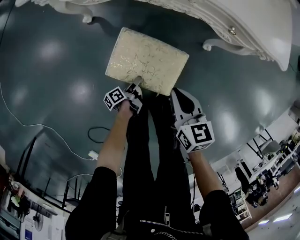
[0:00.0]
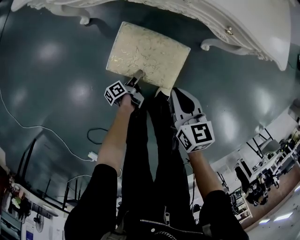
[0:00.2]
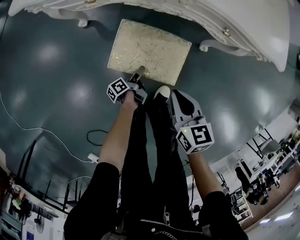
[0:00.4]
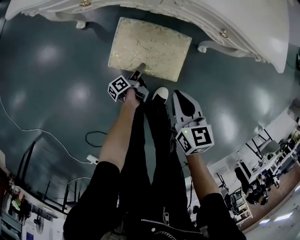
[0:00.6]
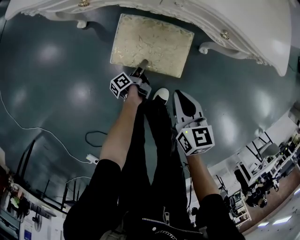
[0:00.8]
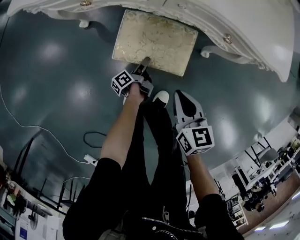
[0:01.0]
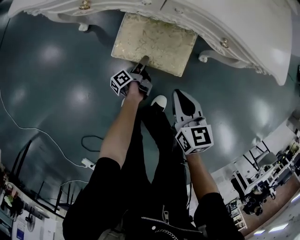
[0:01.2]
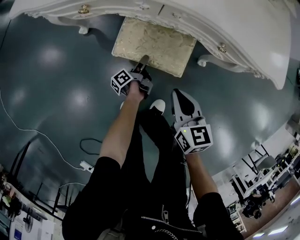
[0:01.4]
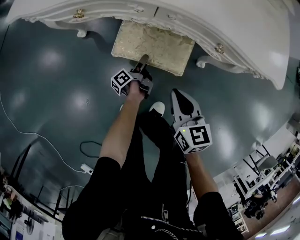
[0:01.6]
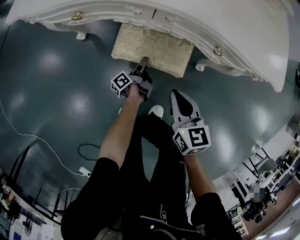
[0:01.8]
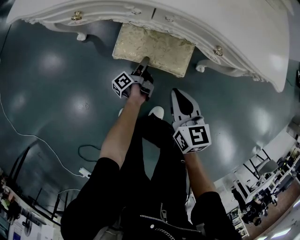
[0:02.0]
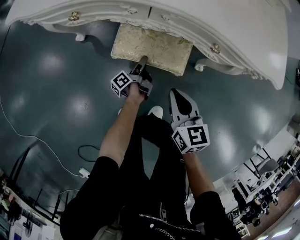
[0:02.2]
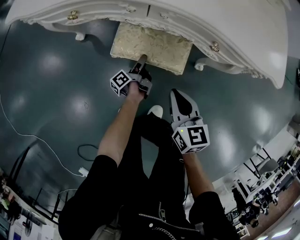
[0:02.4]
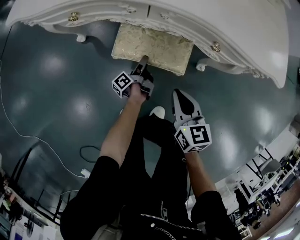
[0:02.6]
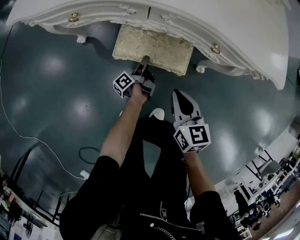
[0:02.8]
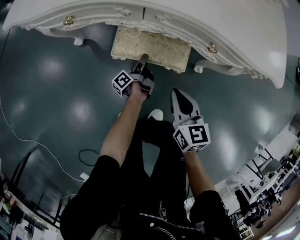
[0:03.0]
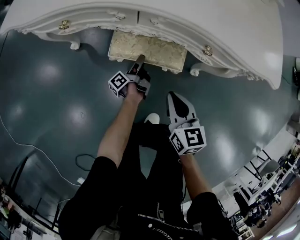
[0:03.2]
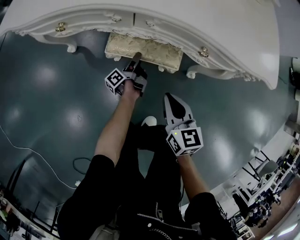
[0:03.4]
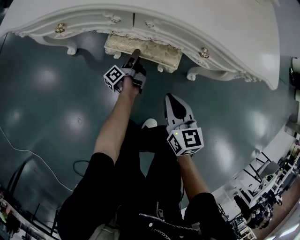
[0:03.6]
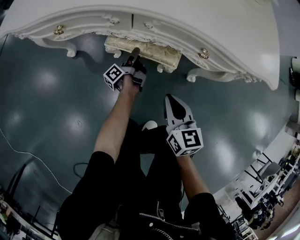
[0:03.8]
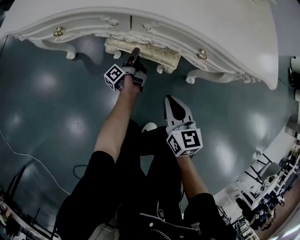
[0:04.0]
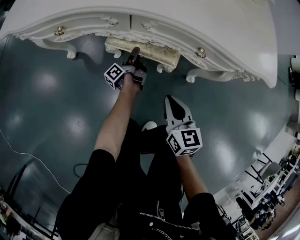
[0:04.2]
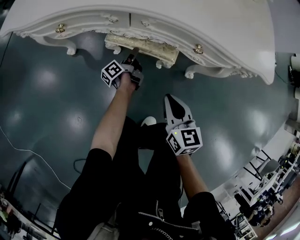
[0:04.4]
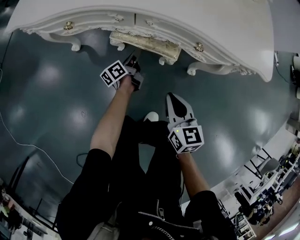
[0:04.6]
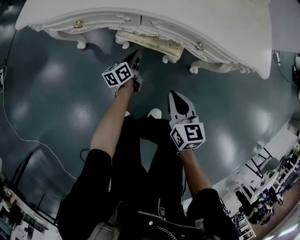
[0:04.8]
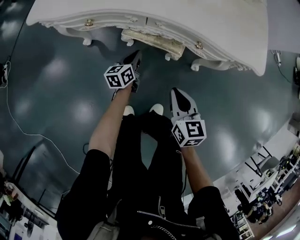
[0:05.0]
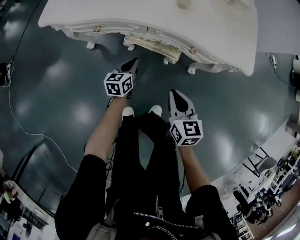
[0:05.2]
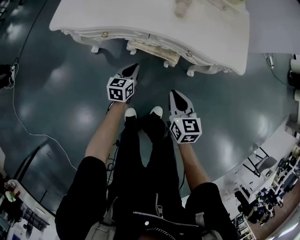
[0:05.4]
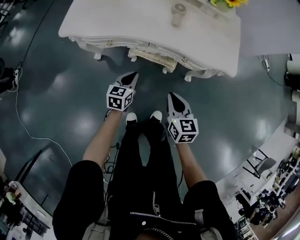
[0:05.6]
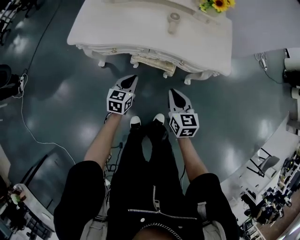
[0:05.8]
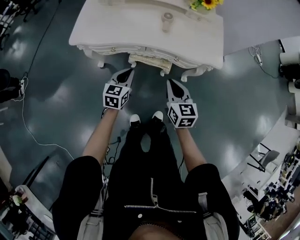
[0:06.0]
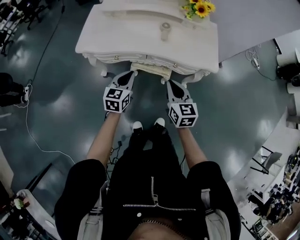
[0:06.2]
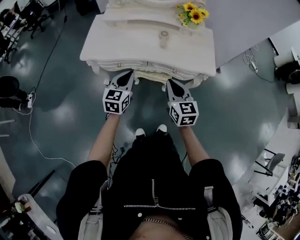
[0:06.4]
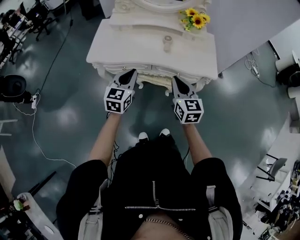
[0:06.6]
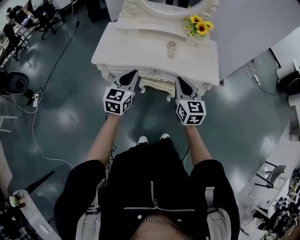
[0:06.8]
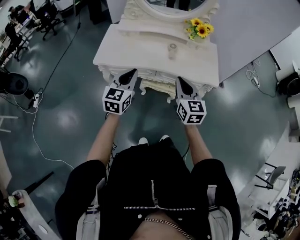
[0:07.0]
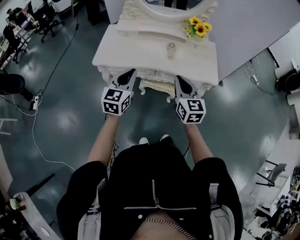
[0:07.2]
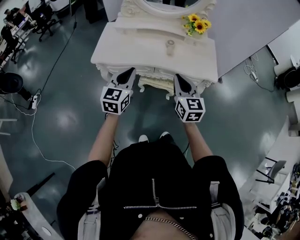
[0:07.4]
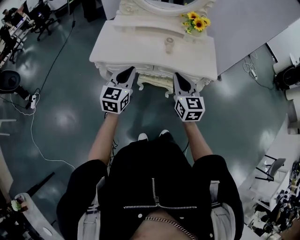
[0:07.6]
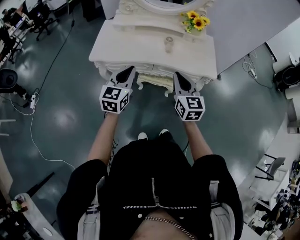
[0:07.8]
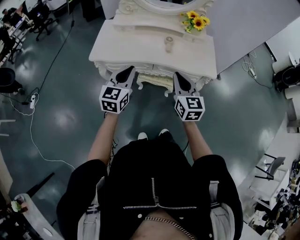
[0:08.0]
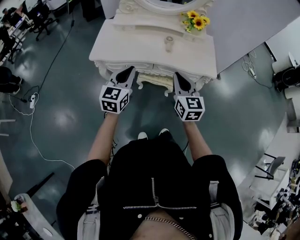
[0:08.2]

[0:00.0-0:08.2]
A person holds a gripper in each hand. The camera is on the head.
0.0 to 1.6 s: The left gripper is displaced forward and to the right by approximately 25 cm, and swivels about 20 degrees. Meanwhile the right gripper shifts approximately 10 cm forward and to the right.
1.6 to 3.2 s: The left gripper changes place by about 5 cm.
3.2 to 5.0 s: The left gripper travels upward by approximately 15 cm, rolls clockwise, seen from behind, by roughly 60 degrees, and closes, while the right gripper heads upward, covering about 10 cm.
5.0 to 6.6 s: The grippers both shift upward by about 40 cm. The left gripper swivels approximately 40 degrees; the right gripper swivels approximately 20 degrees.
6.6 to 8.2 s: The left gripper moves some 5 cm.

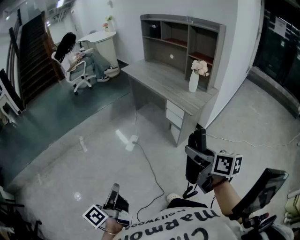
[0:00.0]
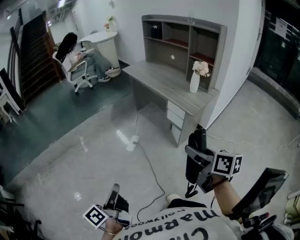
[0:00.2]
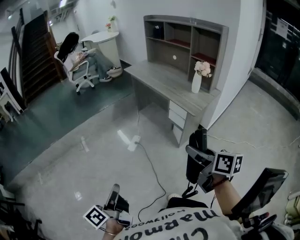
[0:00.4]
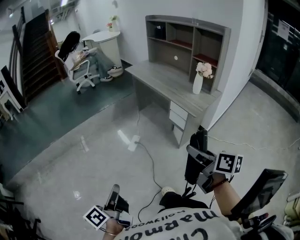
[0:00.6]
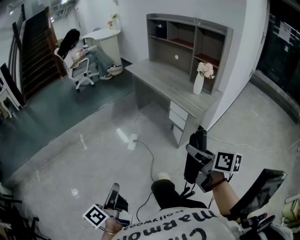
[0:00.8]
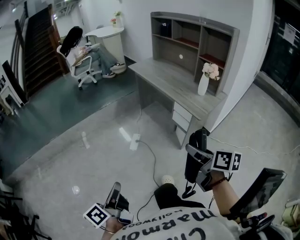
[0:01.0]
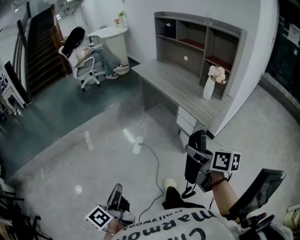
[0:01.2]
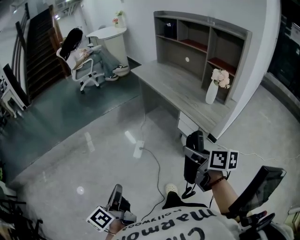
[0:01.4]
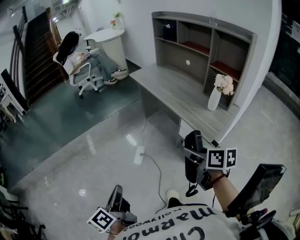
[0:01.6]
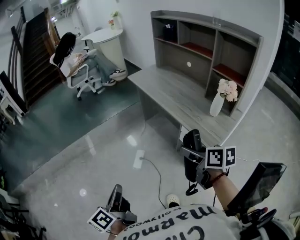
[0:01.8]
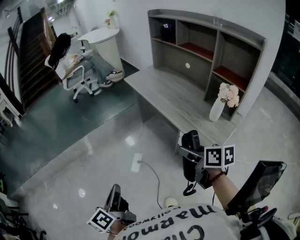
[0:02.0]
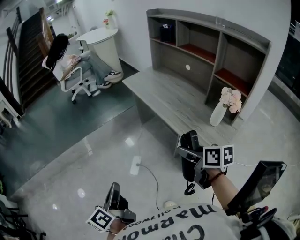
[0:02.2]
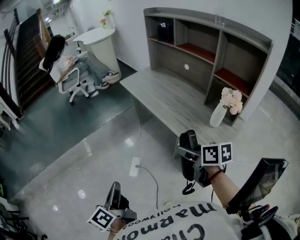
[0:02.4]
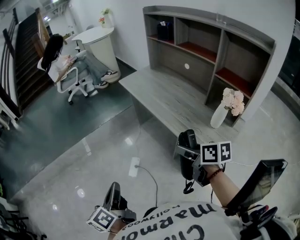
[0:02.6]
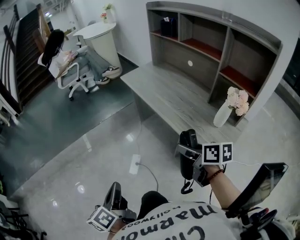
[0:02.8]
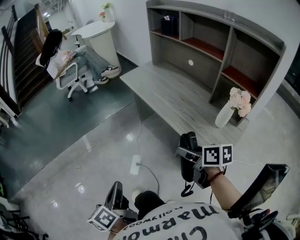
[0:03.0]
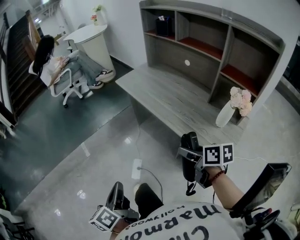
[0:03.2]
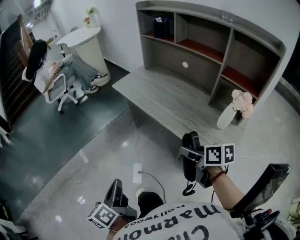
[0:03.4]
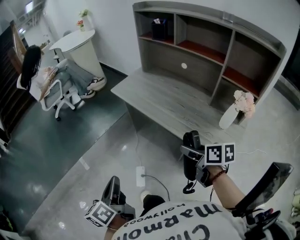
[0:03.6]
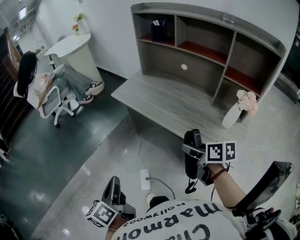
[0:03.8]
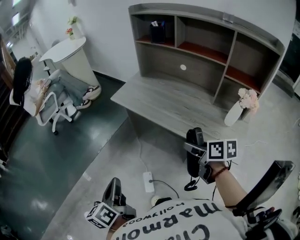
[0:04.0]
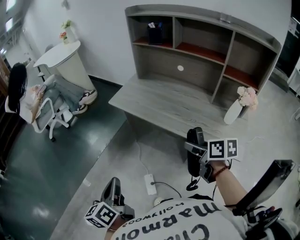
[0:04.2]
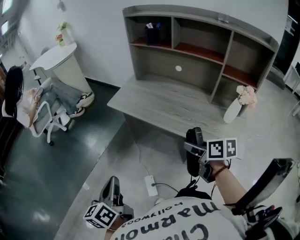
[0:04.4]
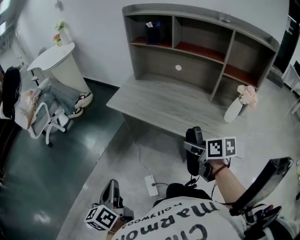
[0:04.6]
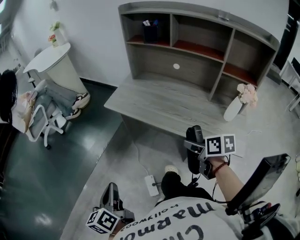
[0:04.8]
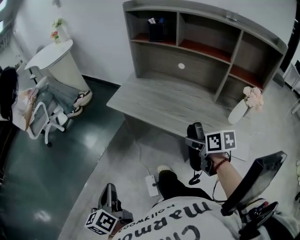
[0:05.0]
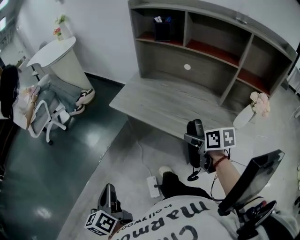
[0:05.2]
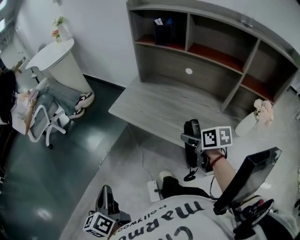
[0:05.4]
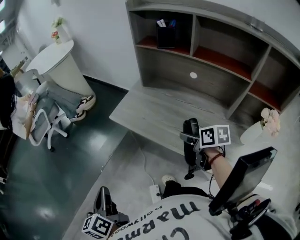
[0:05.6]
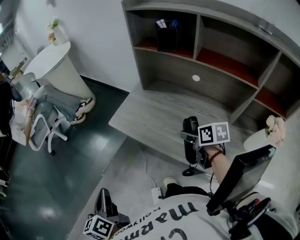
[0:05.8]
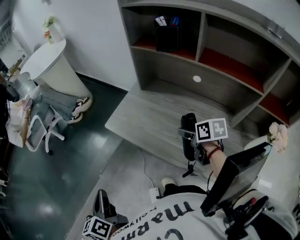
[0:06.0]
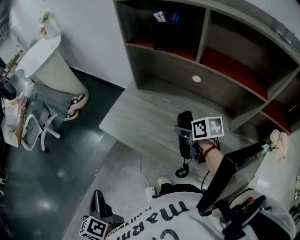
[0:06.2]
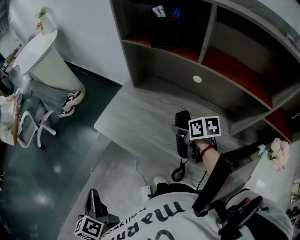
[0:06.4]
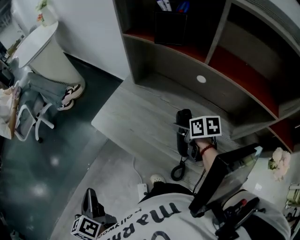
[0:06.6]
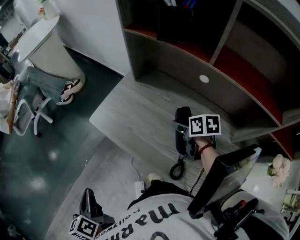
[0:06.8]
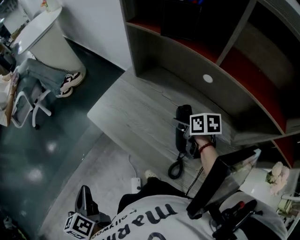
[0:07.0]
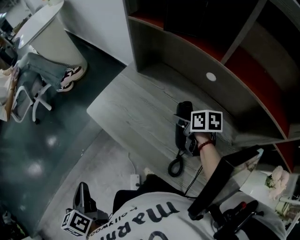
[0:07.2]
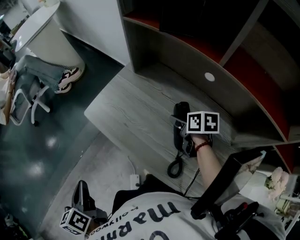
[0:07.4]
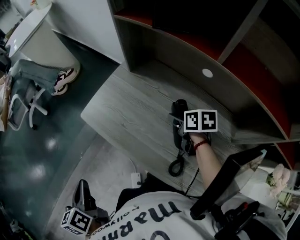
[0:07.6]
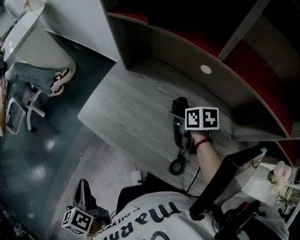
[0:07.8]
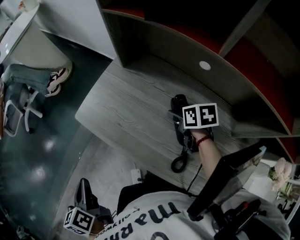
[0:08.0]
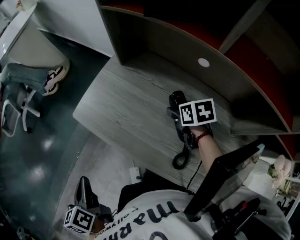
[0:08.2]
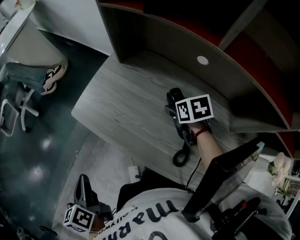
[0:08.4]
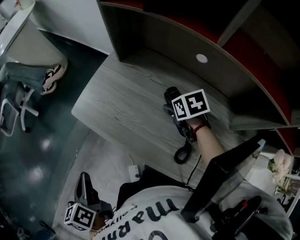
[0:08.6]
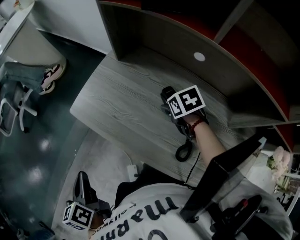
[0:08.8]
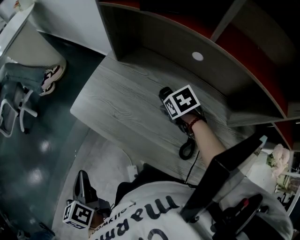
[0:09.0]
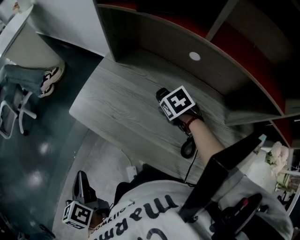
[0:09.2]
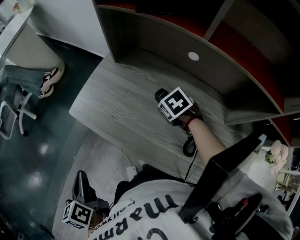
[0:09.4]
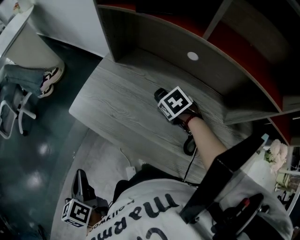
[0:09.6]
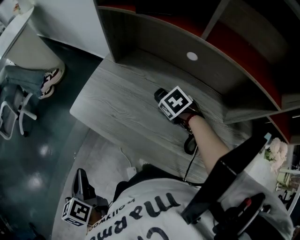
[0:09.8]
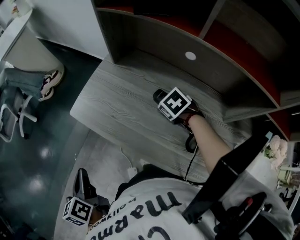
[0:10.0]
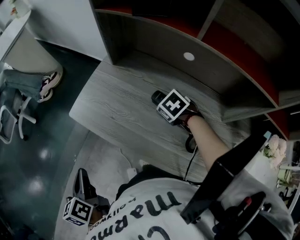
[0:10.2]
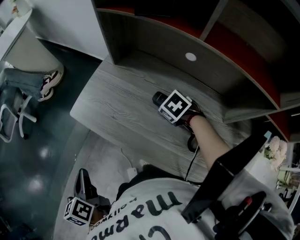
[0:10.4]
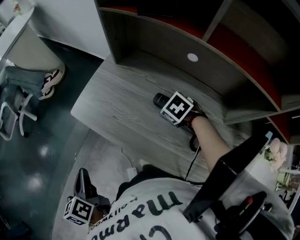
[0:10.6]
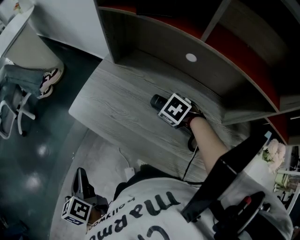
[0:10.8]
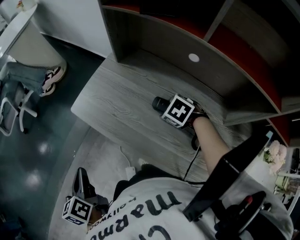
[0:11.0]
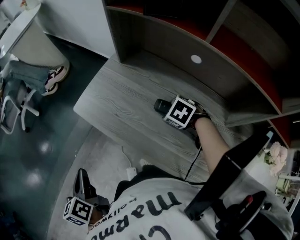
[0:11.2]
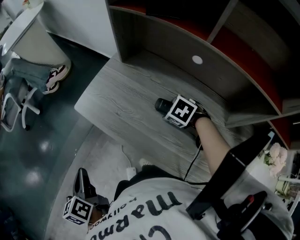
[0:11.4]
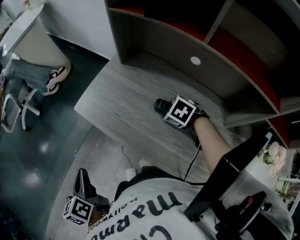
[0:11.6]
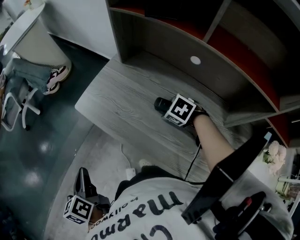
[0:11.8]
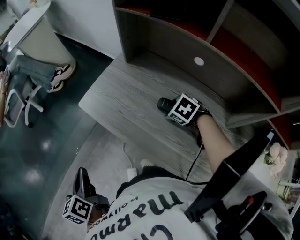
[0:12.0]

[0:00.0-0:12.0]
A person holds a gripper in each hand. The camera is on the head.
0.0 to 1.6 s: Both grippers travel together forward, some 20 cm.
1.6 to 3.0 s: The grippers both shift forward by some 20 cm.
3.0 to 4.4 s: The right gripper changes place by some 20 cm, and rotates roughly 30 degrees; the left gripper changes place by about 35 cm, and turns by approximately 30 degrees.
4.4 to 6.0 s: The left gripper goes about 20 cm forward, while the right gripper travels forward by about 30 cm.
6.0 to 7.6 s: The left gripper shifts some 10 cm to the right and forward; the right gripper travels forward, downward and to the right by roughly 15 cm.
7.6 to 9.0 s: The right gripper rotates roughly 30 degrees.
9.0 to 10.4 s: The grippers make only small movements.
10.4 to 12.0 s: The grippers move only a little.

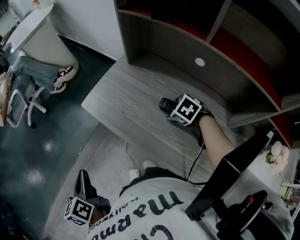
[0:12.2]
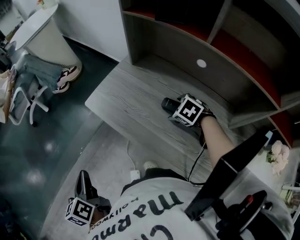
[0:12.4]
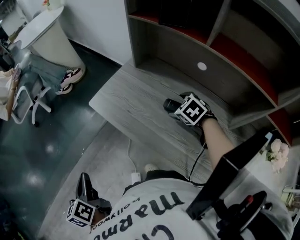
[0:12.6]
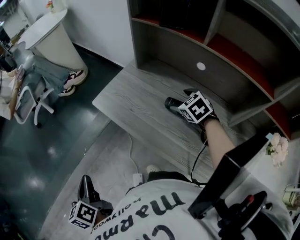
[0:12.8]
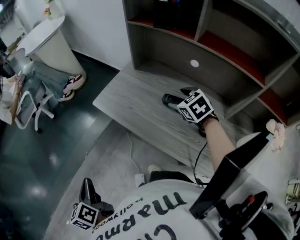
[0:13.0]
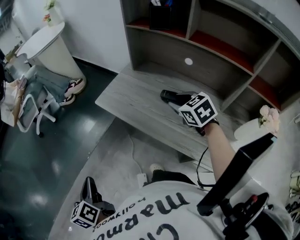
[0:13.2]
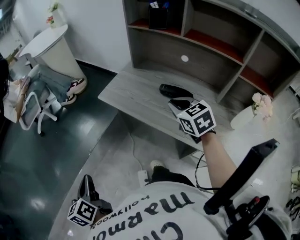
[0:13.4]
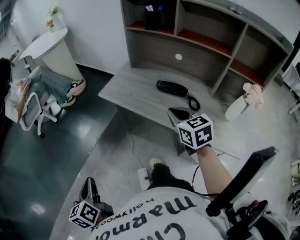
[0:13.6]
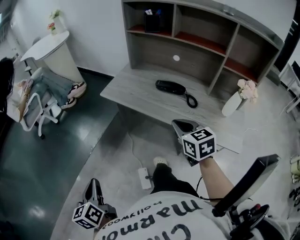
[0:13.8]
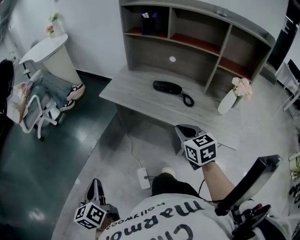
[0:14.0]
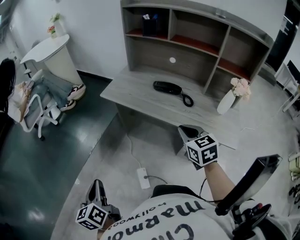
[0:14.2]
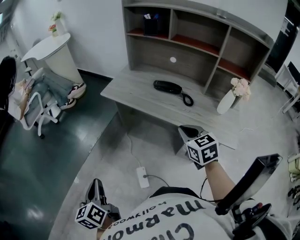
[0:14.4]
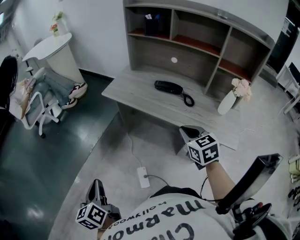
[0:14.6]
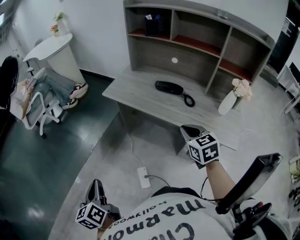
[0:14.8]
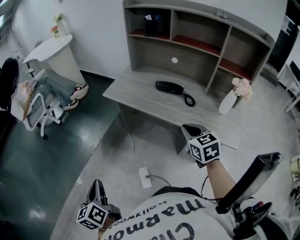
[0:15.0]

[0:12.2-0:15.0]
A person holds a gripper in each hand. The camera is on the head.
12.2 to 13.6 s: The left gripper moves backward and to the left, about 25 cm; the right gripper goes about 35 cm backward, upward and to the left, tilts its fingers some 40 degrees upward, and closes.
13.6 to 15.0 s: The right gripper heads backward, covering some 15 cm. The left gripper moves backward, approximately 10 cm.

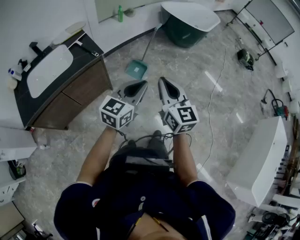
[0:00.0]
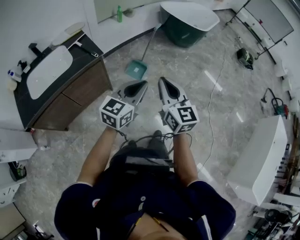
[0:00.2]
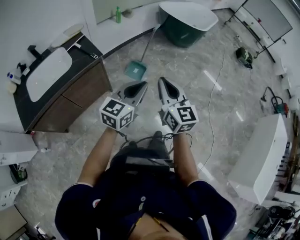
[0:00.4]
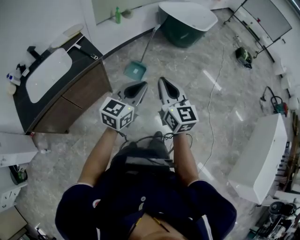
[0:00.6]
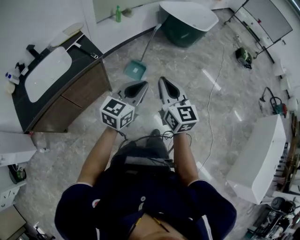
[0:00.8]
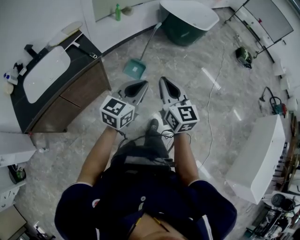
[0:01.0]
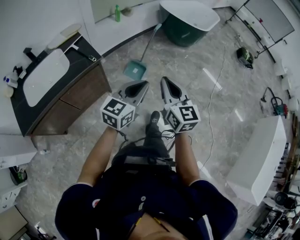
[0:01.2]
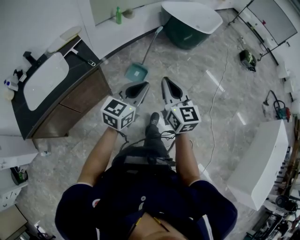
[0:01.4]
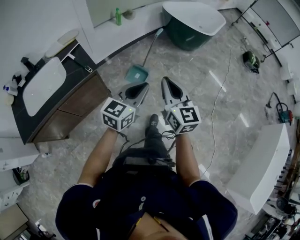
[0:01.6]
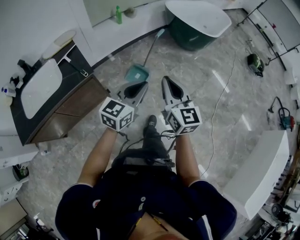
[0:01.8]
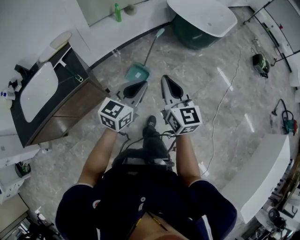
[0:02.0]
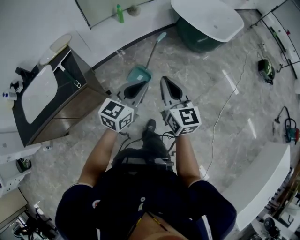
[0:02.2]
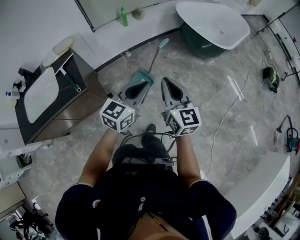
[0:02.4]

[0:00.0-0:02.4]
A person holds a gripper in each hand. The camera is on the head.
0.0 to 1.2 s: Both grippers travel together forward, roughly 5 cm.
1.2 to 2.4 s: The grippers both shift forward by about 35 cm.
